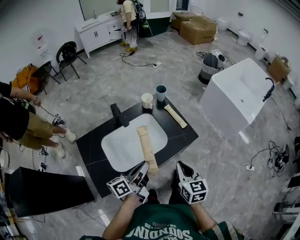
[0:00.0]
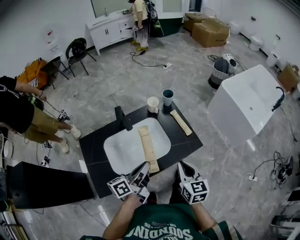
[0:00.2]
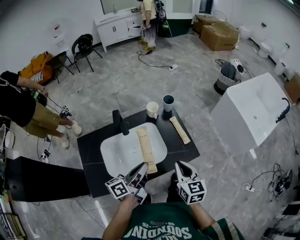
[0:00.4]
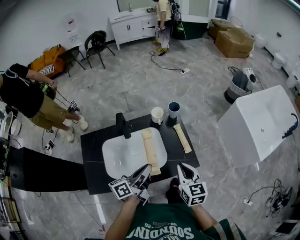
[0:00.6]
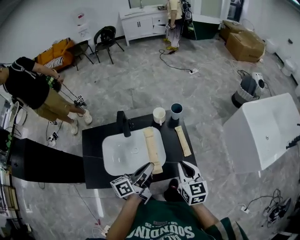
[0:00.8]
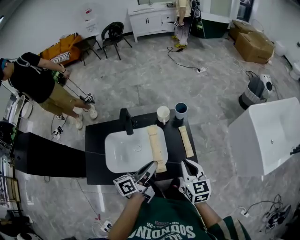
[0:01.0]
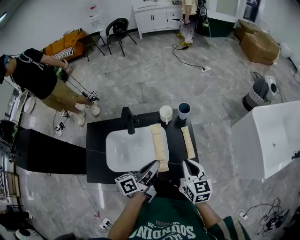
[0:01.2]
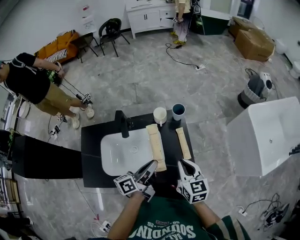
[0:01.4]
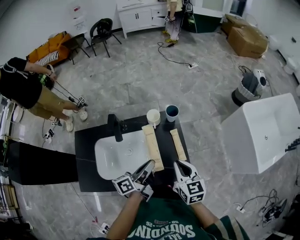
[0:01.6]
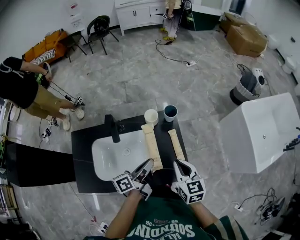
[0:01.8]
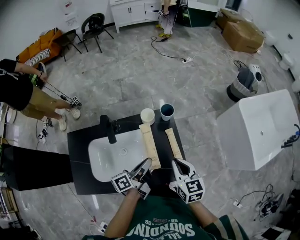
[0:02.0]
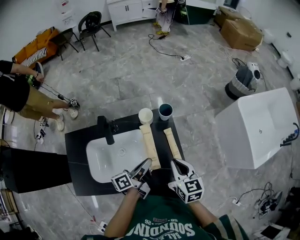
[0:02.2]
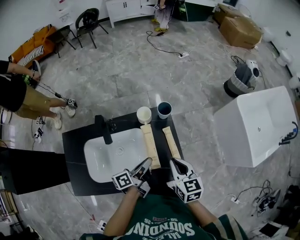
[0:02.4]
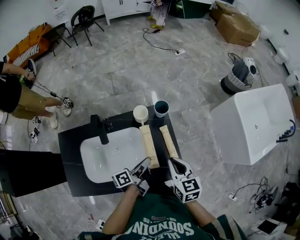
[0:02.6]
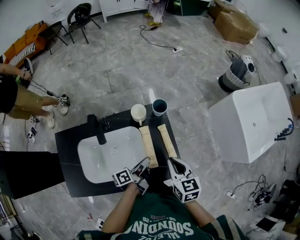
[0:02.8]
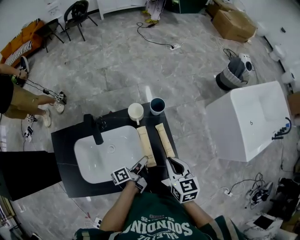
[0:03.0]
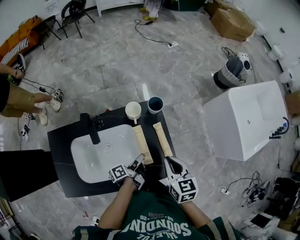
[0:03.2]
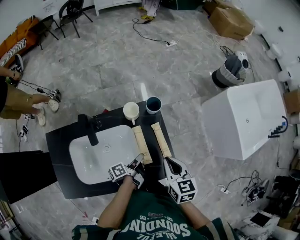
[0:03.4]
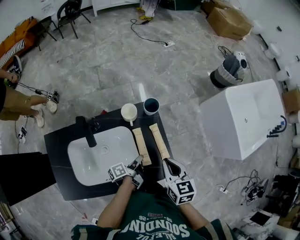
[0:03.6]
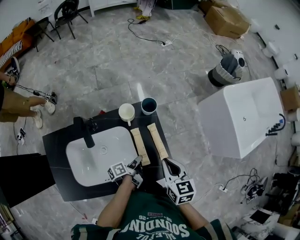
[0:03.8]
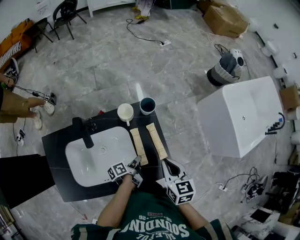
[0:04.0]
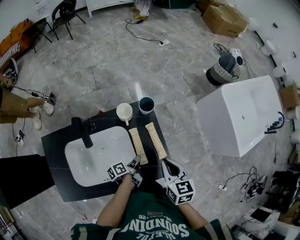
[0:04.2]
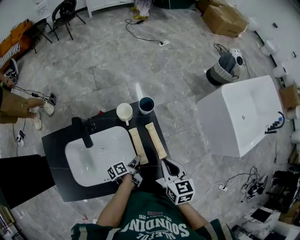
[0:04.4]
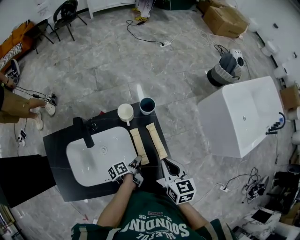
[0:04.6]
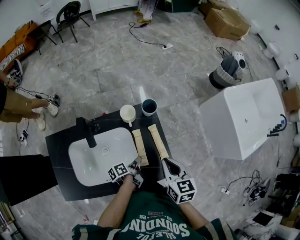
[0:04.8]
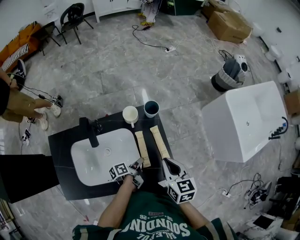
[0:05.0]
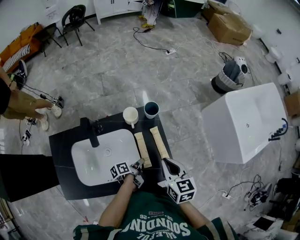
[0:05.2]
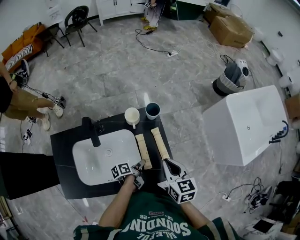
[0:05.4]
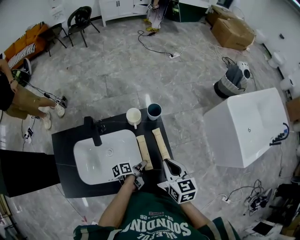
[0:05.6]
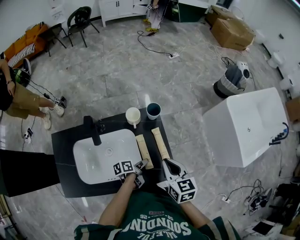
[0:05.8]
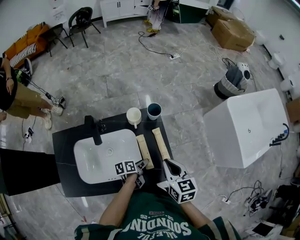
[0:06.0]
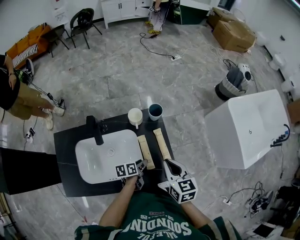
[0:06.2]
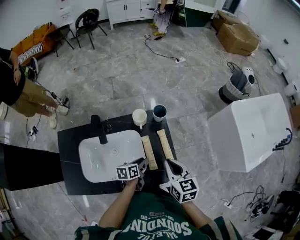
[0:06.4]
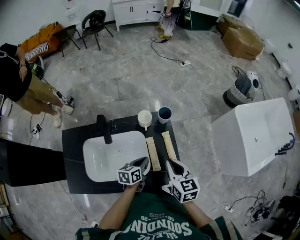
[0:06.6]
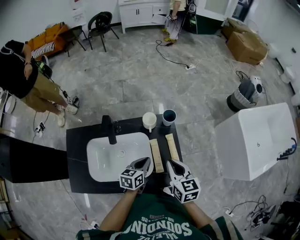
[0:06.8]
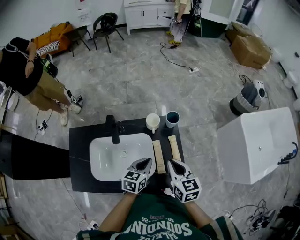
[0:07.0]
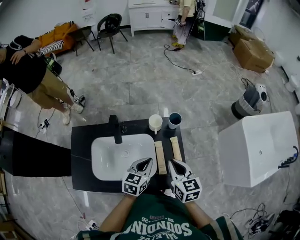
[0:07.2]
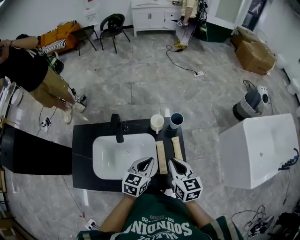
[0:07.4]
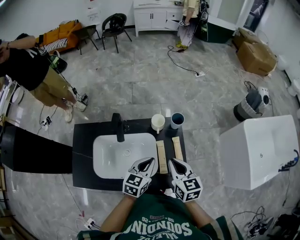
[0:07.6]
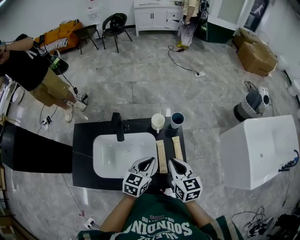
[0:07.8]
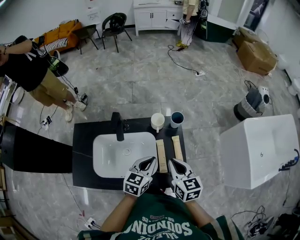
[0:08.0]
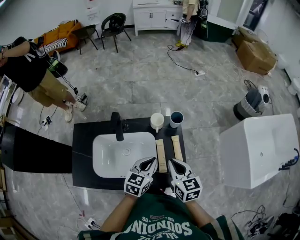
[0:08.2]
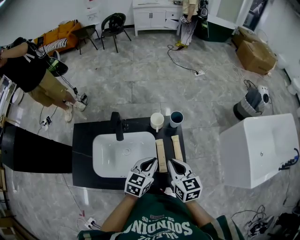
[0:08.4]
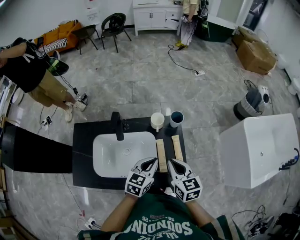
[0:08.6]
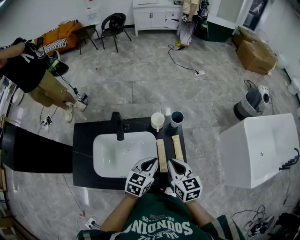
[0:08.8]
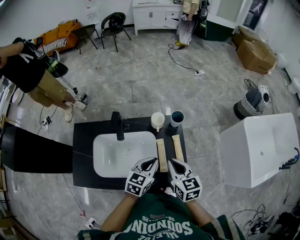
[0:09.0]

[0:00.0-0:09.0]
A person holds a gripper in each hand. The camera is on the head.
0:00.0 to 0:01.6: The left gripper moves forward and to the right, about 25 cm, and rotates about 20 degrees. Meanwhile the right gripper goes approximately 25 cm forward, and turns by about 30 degrees.
0:01.6 to 0:03.0: The right gripper changes place by roughly 5 cm; the left gripper travels downward by about 15 cm, and rotates approximately 20 degrees.
0:03.0 to 0:04.4: The left gripper shifts about 10 cm downward.
0:04.4 to 0:06.0: The left gripper opens.
0:06.0 to 0:07.6: The right gripper travels to the left by some 5 cm, while the left gripper is displaced upward by some 20 cm, twists about 50 degrees clockwise, seen from behind, and closes up.
0:07.6 to 0:09.0: The grippers make only small movements.

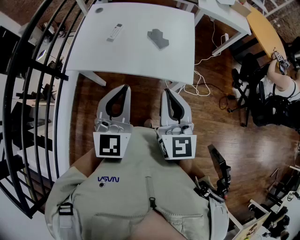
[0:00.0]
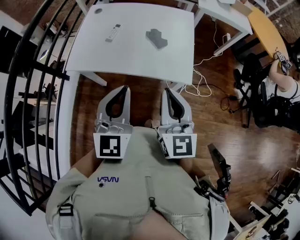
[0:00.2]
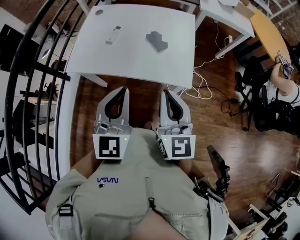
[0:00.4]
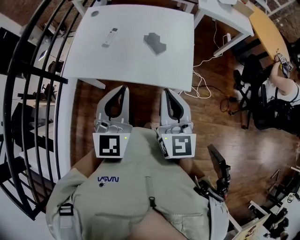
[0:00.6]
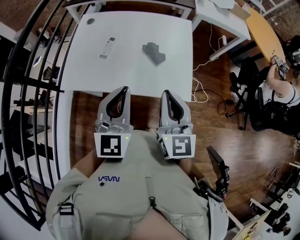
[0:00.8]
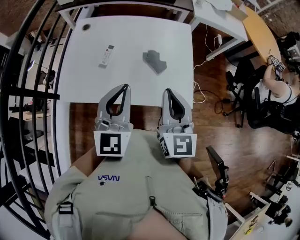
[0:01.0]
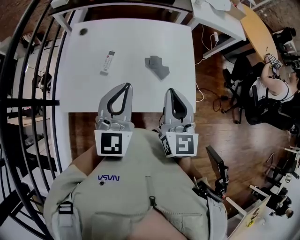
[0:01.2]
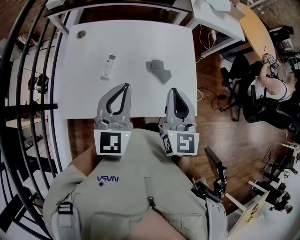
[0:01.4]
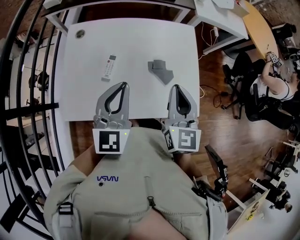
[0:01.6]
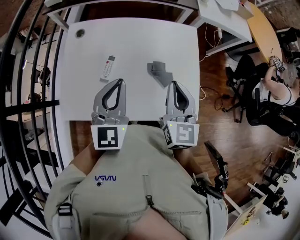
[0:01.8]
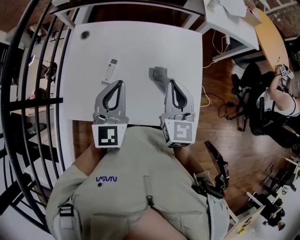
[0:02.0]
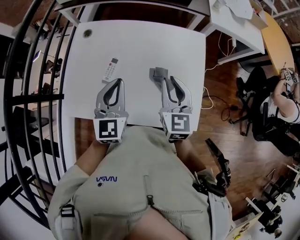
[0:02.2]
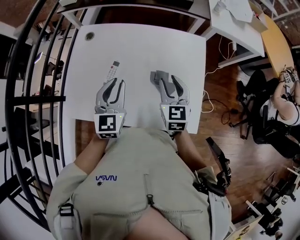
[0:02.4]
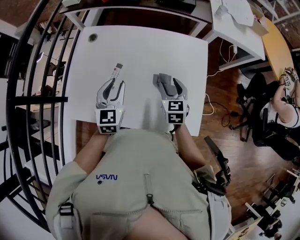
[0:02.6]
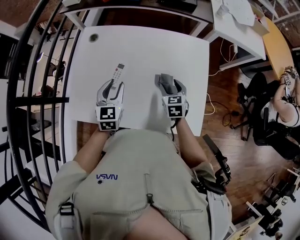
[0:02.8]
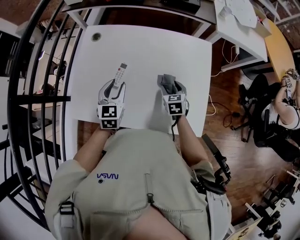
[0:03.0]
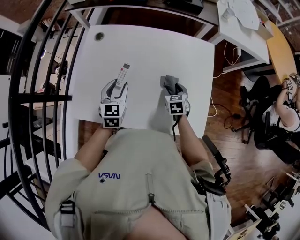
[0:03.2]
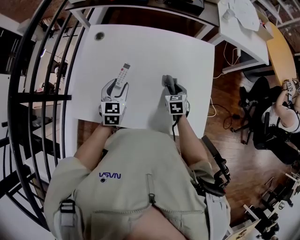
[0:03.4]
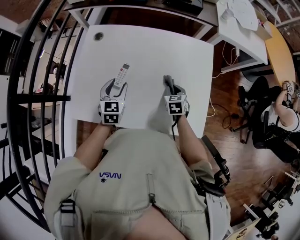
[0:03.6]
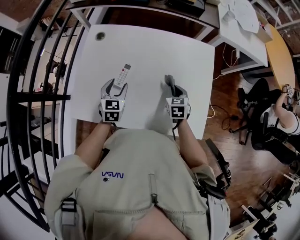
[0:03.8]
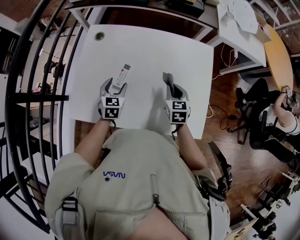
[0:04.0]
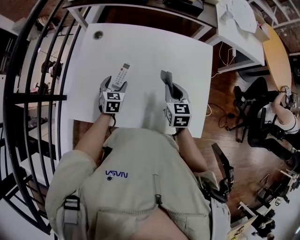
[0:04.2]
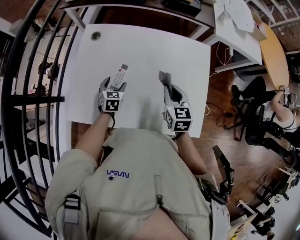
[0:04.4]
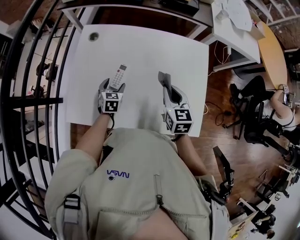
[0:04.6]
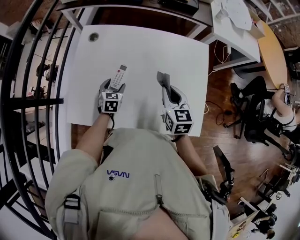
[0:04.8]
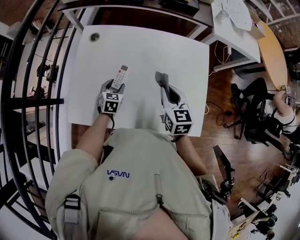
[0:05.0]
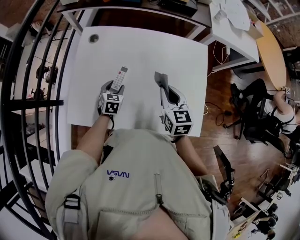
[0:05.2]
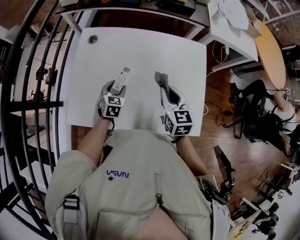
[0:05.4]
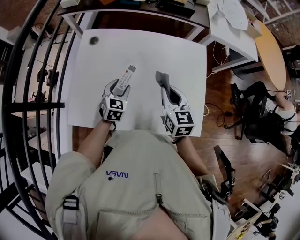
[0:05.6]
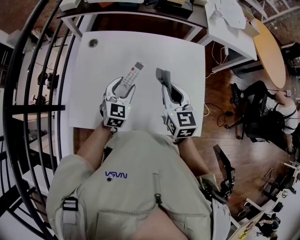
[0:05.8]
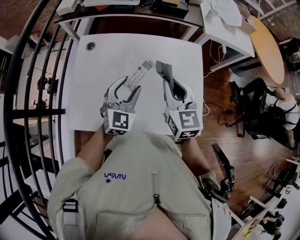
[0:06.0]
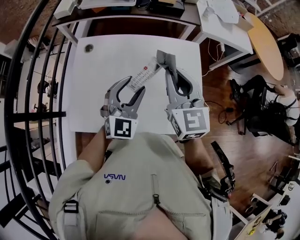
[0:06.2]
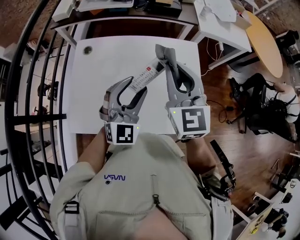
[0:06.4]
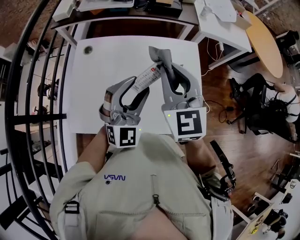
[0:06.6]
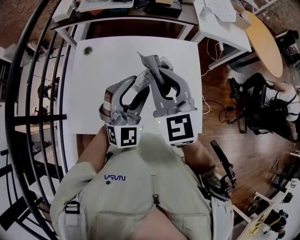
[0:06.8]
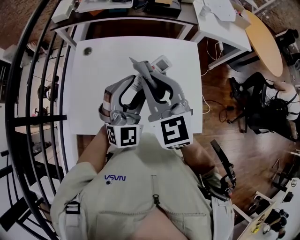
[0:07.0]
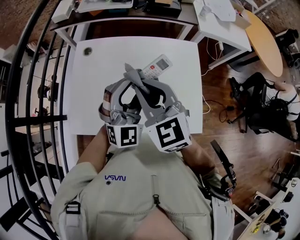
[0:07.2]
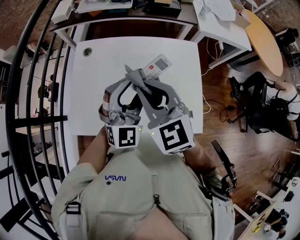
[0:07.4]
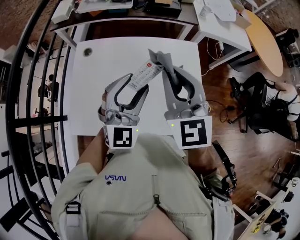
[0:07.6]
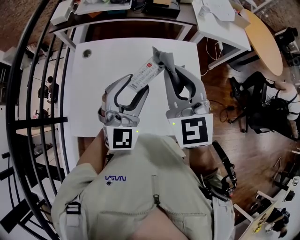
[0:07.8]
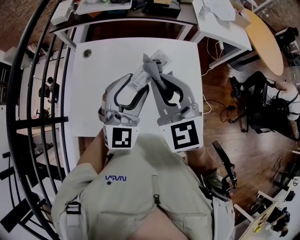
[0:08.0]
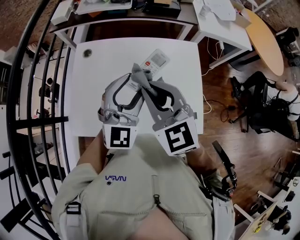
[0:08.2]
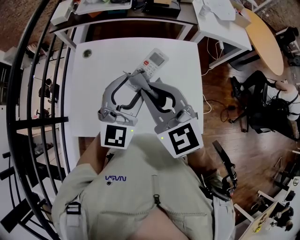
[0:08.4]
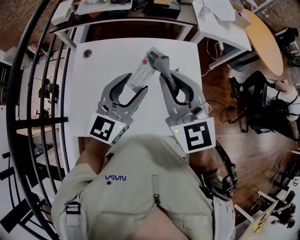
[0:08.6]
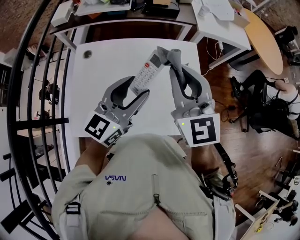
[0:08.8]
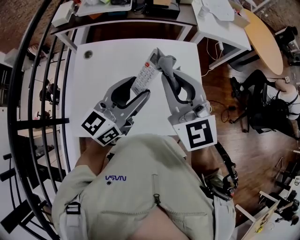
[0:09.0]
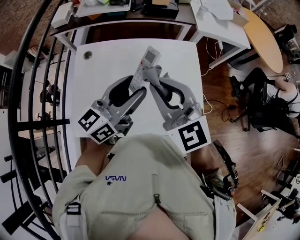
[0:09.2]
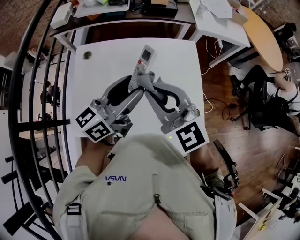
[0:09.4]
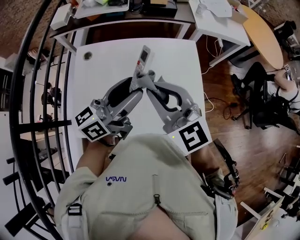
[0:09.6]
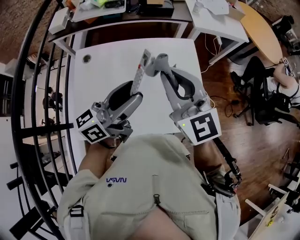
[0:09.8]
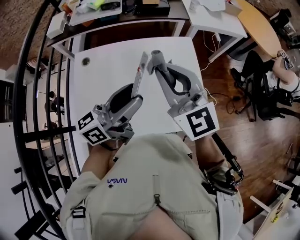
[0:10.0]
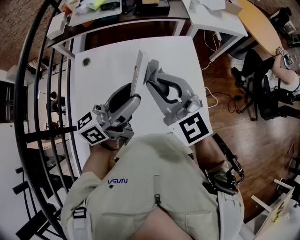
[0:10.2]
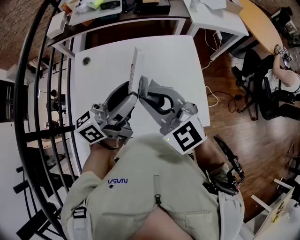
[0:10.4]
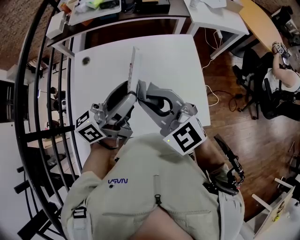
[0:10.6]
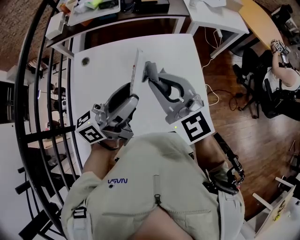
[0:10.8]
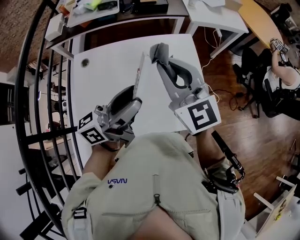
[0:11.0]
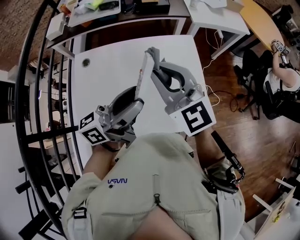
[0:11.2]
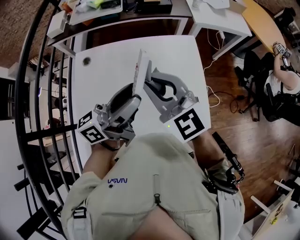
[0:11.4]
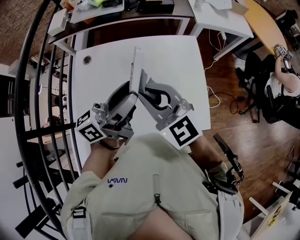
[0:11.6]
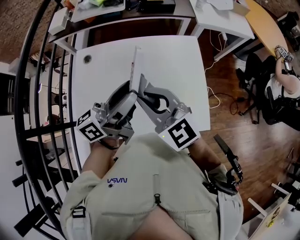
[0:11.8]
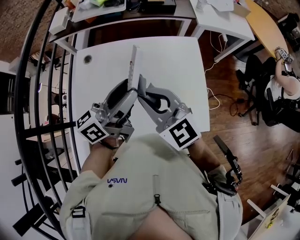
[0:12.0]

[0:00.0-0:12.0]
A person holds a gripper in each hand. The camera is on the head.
0:00.0 to 0:01.6: The grippers both shift forward by about 25 cm.
0:01.6 to 0:03.0: The right gripper travels downward and forward by some 30 cm, tilts its fingers approximately 40 degrees downward, and opens. The left gripper goes some 20 cm downward and forward, changes its angle by about 30 degrees, and opens its fingers.
0:03.0 to 0:04.4: The left gripper travels downward by roughly 15 cm, and opens up; the right gripper shifts approximately 10 cm upward, and closes up.
0:04.4 to 0:06.0: The left gripper shifts roughly 25 cm upward and to the right, and swivels roughly 40 degrees. Meanwhile the right gripper travels upward by about 15 cm.
0:06.0 to 0:07.6: The left gripper travels upward by approximately 15 cm, and swivels some 20 degrees. The right gripper swings up and down, approximately 10 cm each way, with 2 reversals.
0:07.6 to 0:09.0: The left gripper rotates around the line of its fingers by about 50 degrees, counterclockwise from behind.
0:09.0 to 0:10.4: The right gripper moves forward and backward over approximately 5 cm, changing direction 2 times, and changes its angle by some 20 degrees, while the left gripper turns by about 30 degrees.
0:10.4 to 0:12.0: The right gripper goes forward and returns, roughly 10 cm each way.

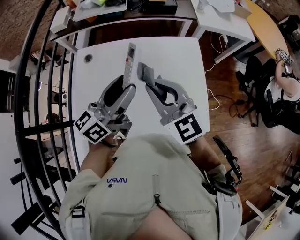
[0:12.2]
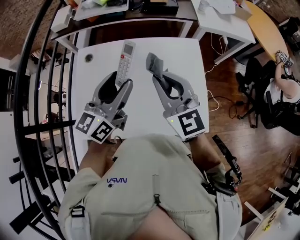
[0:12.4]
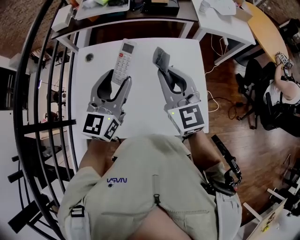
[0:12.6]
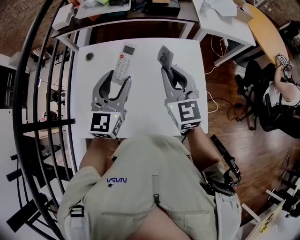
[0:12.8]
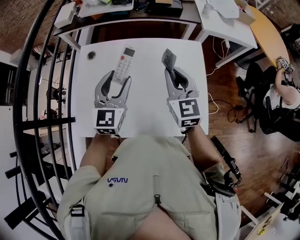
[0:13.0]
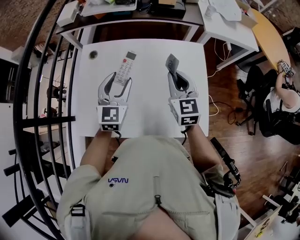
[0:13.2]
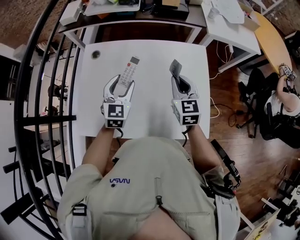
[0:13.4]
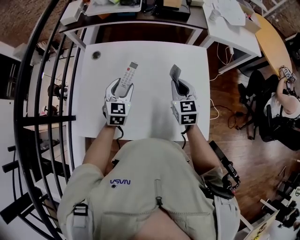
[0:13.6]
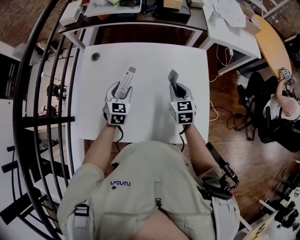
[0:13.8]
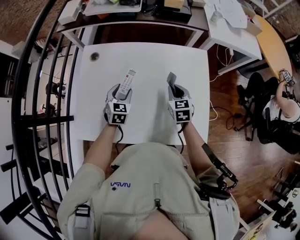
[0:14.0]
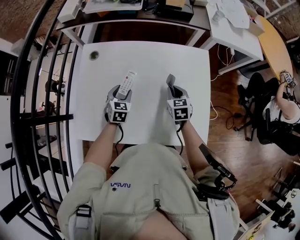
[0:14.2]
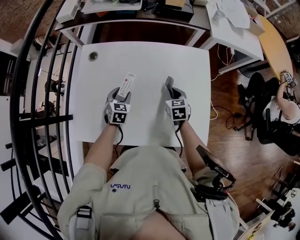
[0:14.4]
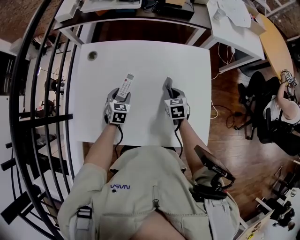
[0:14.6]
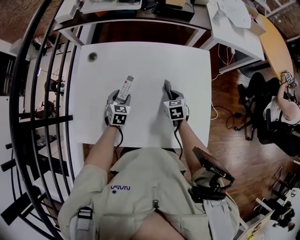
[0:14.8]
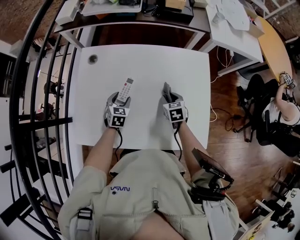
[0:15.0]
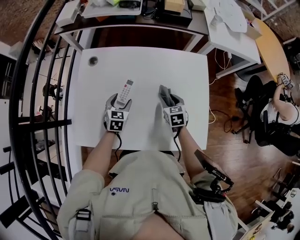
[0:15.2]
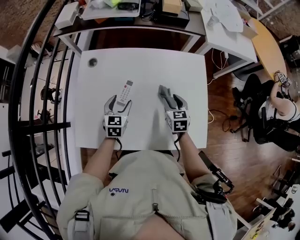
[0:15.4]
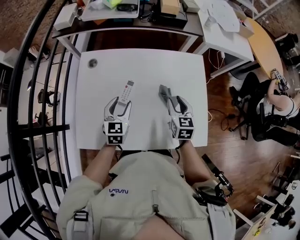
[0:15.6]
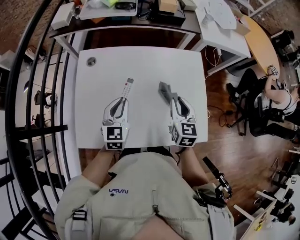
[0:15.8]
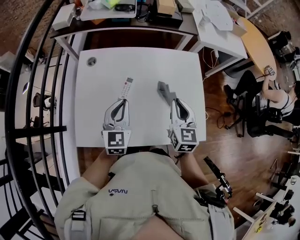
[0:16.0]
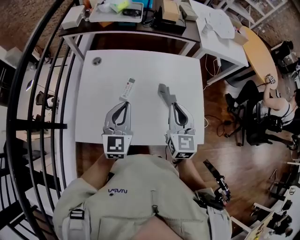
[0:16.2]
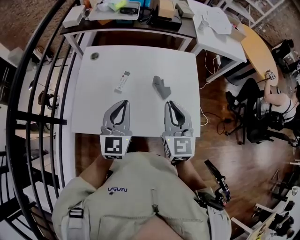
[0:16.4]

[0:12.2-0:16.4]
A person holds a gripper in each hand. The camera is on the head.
0:12.2 to 0:13.6: The right gripper travels downward, to the right and forward by some 20 cm, and rotates about 30 degrees, while the left gripper shifts roughly 20 cm downward, and tilts its fingers roughly 40 degrees downward.
0:13.6 to 0:15.0: The two grippers go some 15 cm downward. The right gripper rotates approximately 30 degrees, and opens.
0:15.0 to 0:16.4: The two grippers go roughly 35 cm upward and backward. The right gripper tips its fingers upward by some 40 degrees, and closes, while the left gripper angles its fingers upward, by approximately 40 degrees, and closes.
